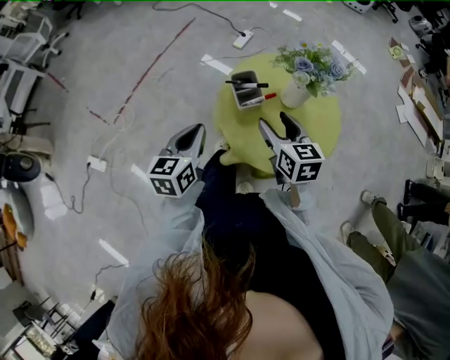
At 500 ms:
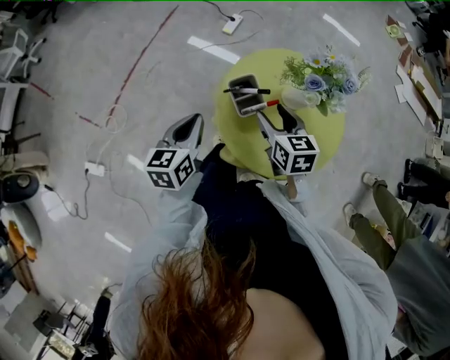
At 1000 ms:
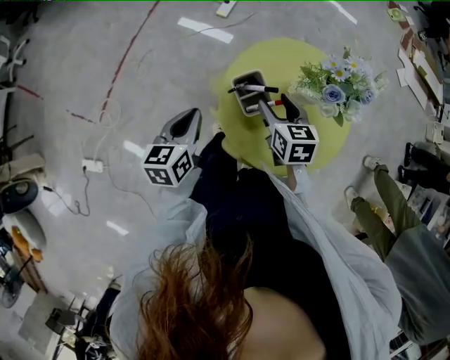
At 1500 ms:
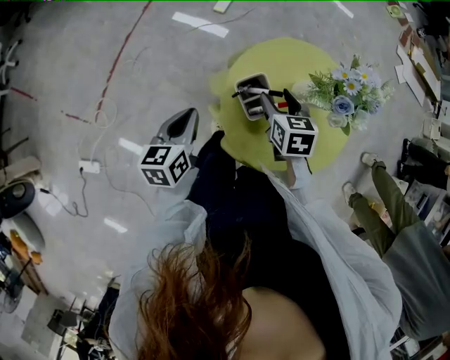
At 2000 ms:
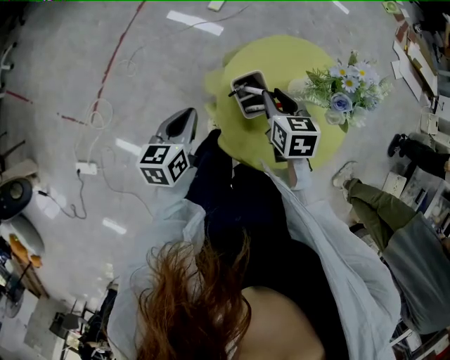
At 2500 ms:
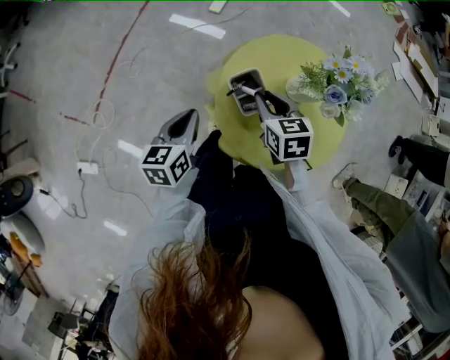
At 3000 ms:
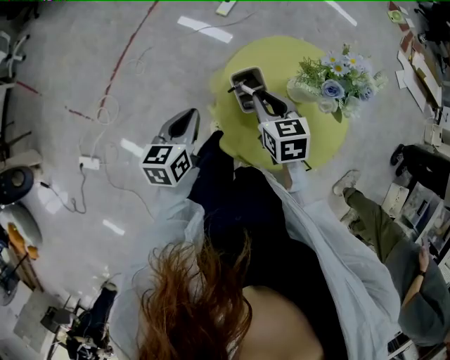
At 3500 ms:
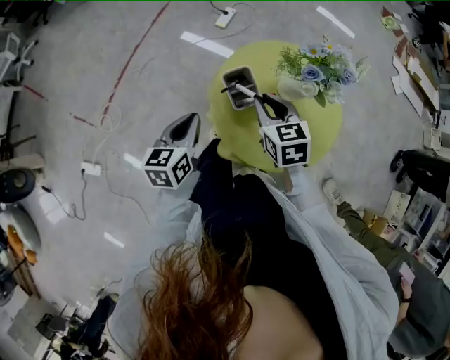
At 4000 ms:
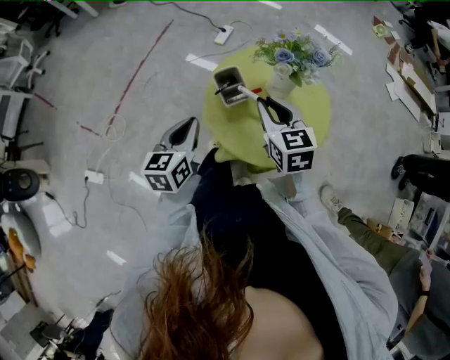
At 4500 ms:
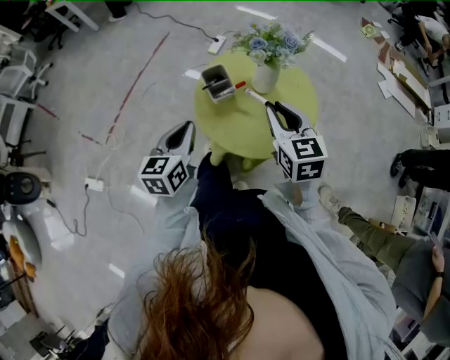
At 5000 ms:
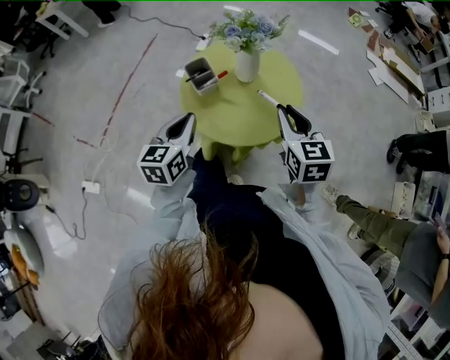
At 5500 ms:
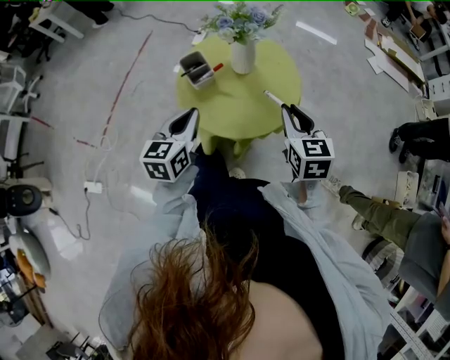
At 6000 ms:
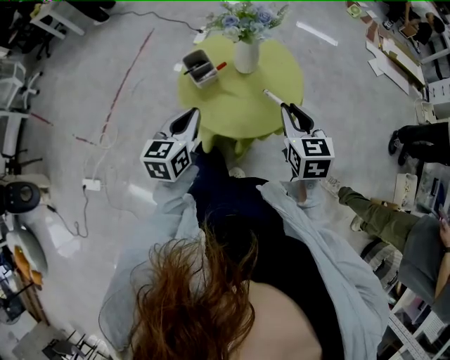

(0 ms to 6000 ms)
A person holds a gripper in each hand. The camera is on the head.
0 ms - 2000 ms: Both grippers travel together forward and downward, some 15 cm. The right gripper changes its angle by some 20 degrees, and closes up.
2000 ms - 4000 ms: The left gripper heads backward, upward and to the right, covering about 15 cm, while the right gripper travels upward and backward by some 15 cm, and rotates about 20 degrees.
4000 ms - 6000 ms: The right gripper goes about 20 cm to the right and backward. The left gripper travels to the right and backward by roughly 10 cm.

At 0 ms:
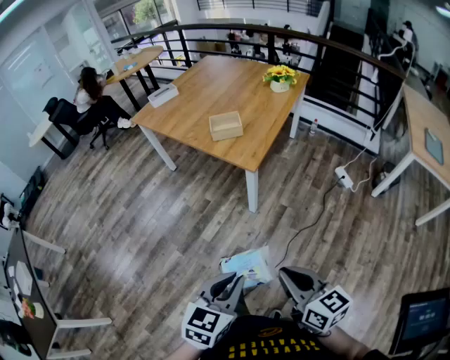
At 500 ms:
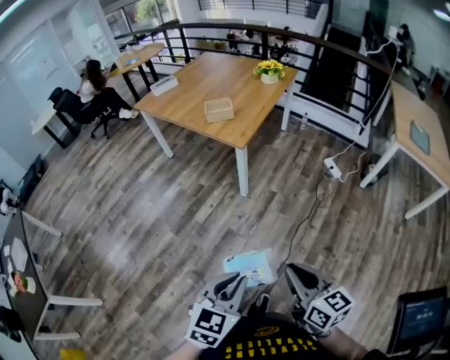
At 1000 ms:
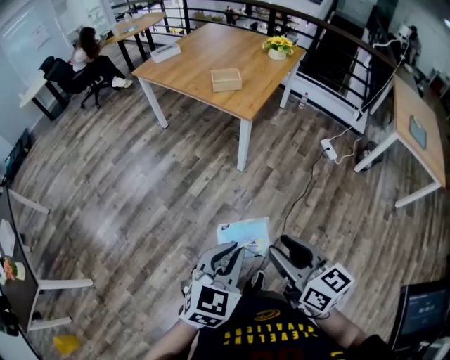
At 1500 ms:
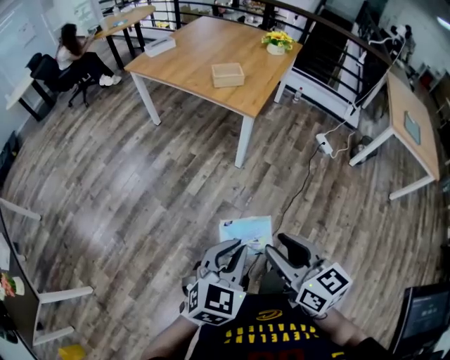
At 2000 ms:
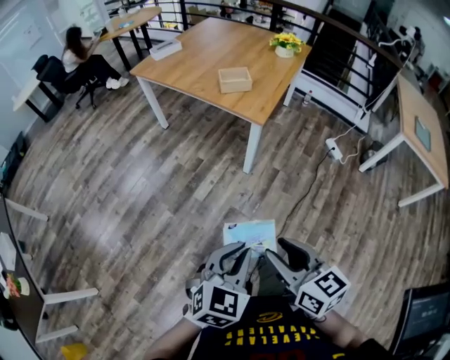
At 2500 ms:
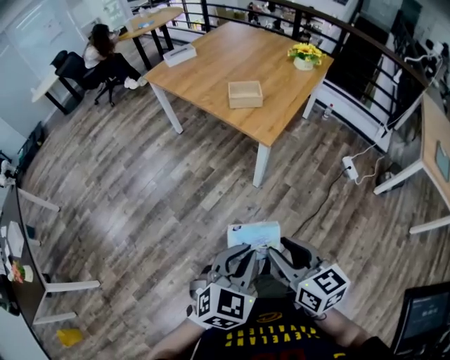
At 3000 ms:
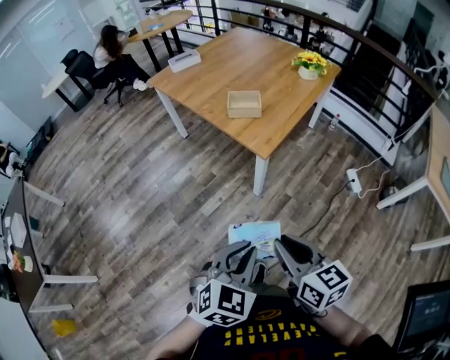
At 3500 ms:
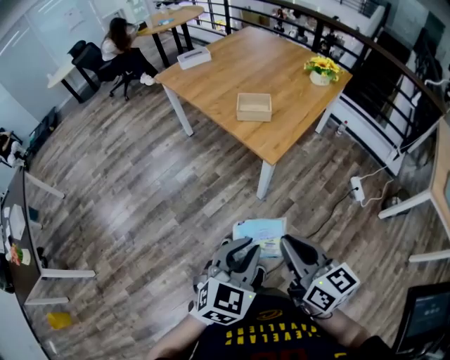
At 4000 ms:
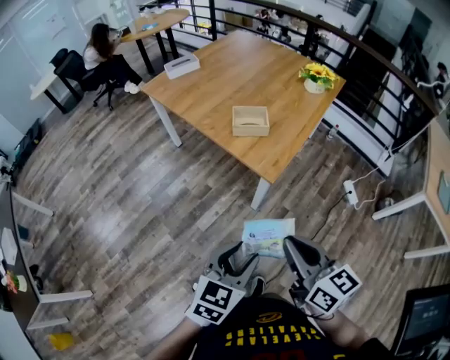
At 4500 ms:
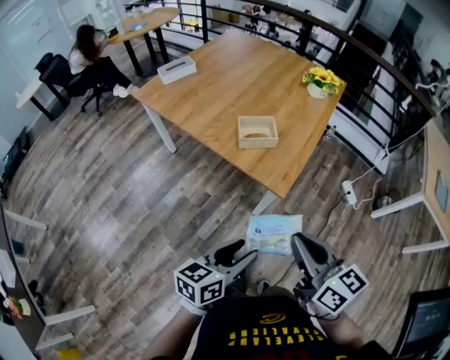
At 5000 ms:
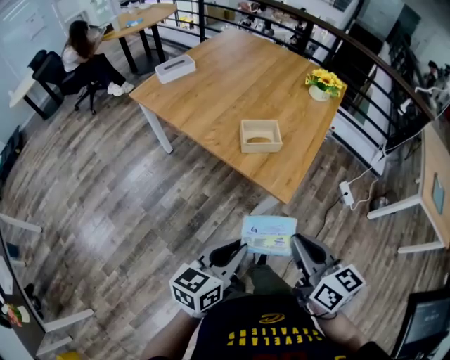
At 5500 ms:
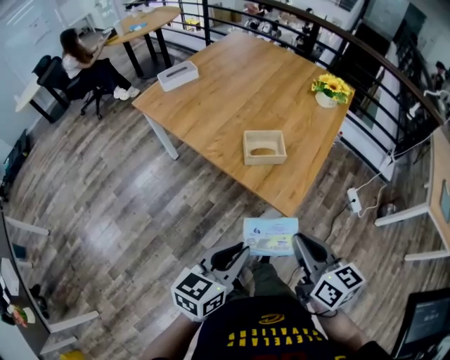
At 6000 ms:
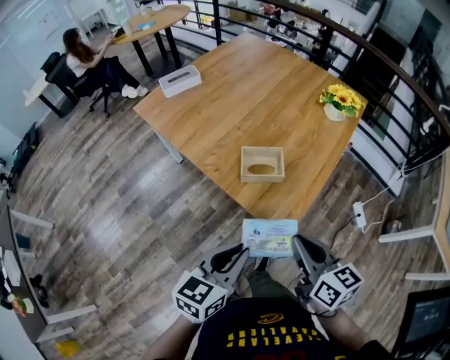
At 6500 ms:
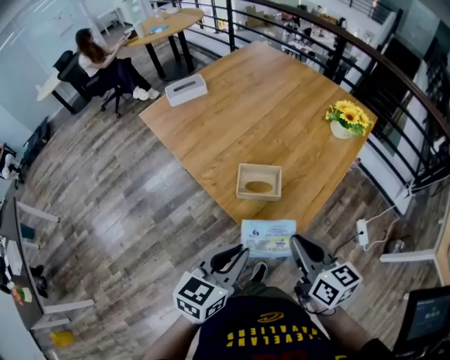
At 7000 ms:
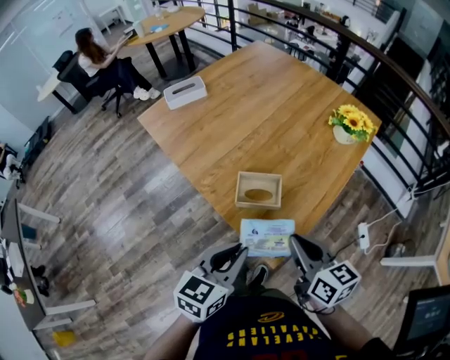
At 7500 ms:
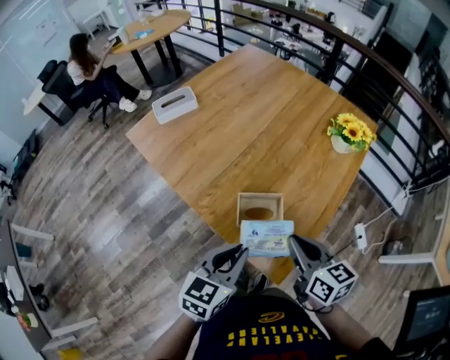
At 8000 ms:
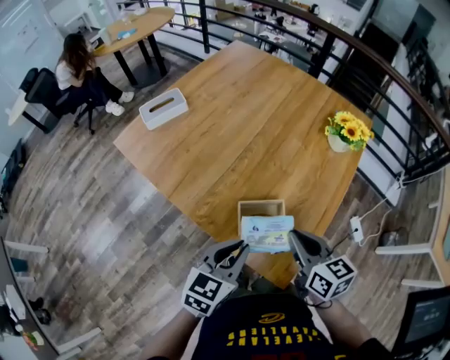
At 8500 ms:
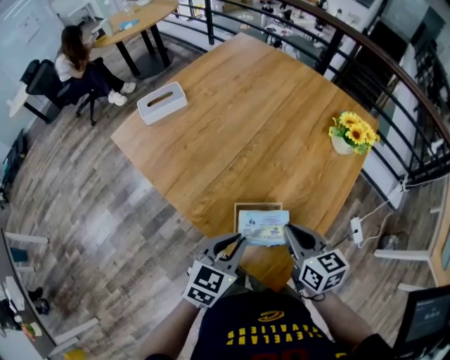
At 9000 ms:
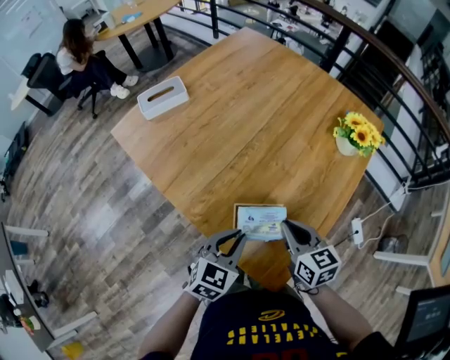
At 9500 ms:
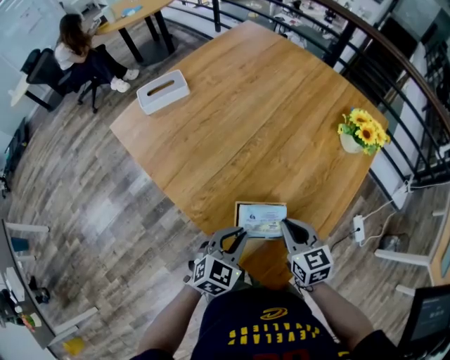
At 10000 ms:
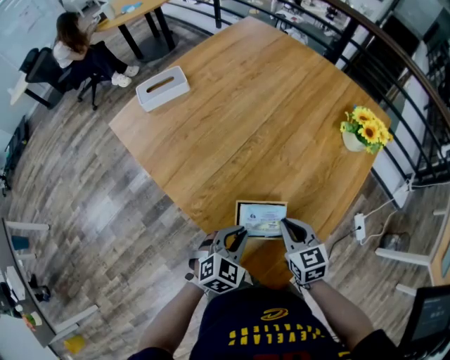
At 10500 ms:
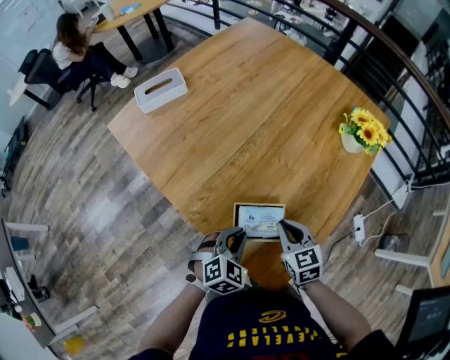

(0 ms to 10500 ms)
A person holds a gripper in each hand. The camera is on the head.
0 ms - 2000 ms: The left gripper shifts some 5 cm backward; the right gripper goes roughly 10 cm to the left and backward, and opens its fingers.
2000 ms - 4000 ms: Both grippers travel together forward, some 25 cm. The right gripper closes its fingers. The left gripper opens.
4000 ms - 6500 ms: Both grippers travel together forward, about 30 cm. The left gripper closes its fingers.
6500 ms - 8500 ms: The grippers both shift forward by some 20 cm.
8500 ms - 10500 ms: The two grippers go about 10 cm downward. The left gripper swivels approximately 30 degrees. Meanwhile the right gripper swivels roughly 20 degrees.

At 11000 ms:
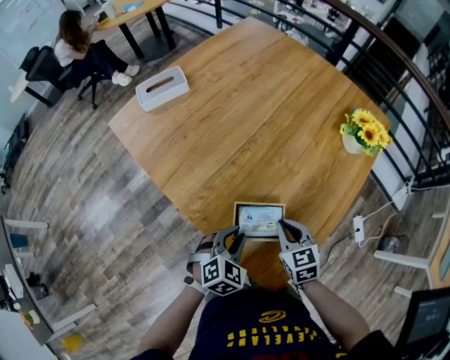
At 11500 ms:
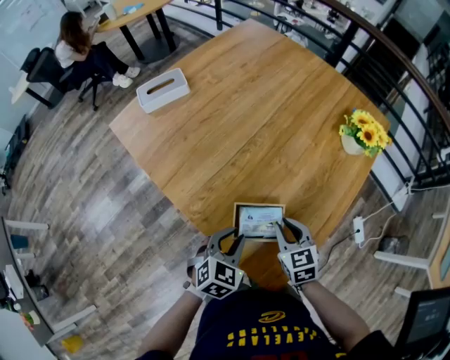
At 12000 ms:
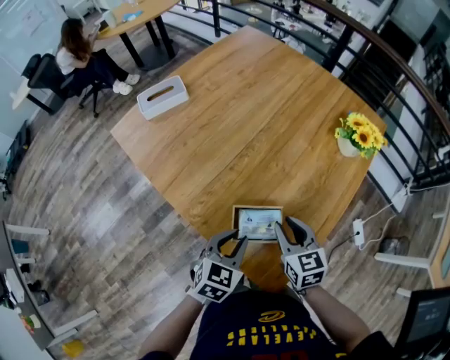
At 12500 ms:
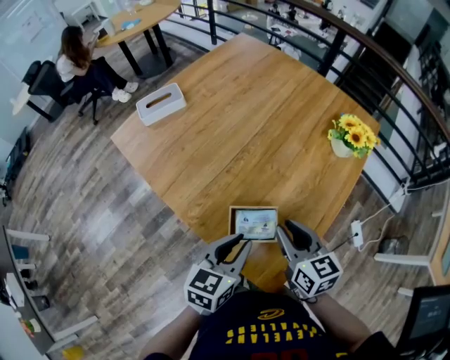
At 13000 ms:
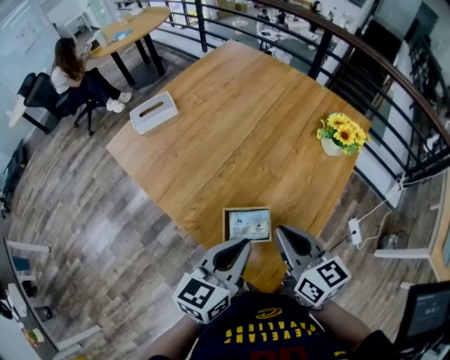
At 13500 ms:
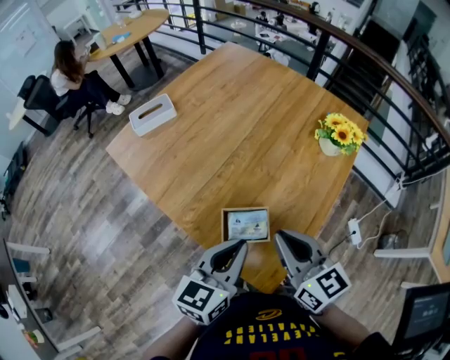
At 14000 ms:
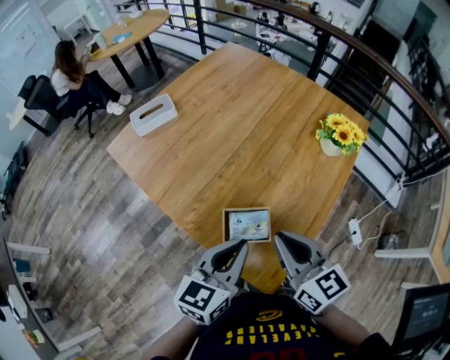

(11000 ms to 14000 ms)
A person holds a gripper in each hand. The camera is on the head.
11000 ms - 12500 ms: The two grippers go some 15 cm upward. The right gripper rotates about 20 degrees, and opens, while the left gripper changes its angle by approximately 40 degrees.
12500 ms - 14000 ms: Both grippers move upward, some 10 cm. The right gripper closes up.

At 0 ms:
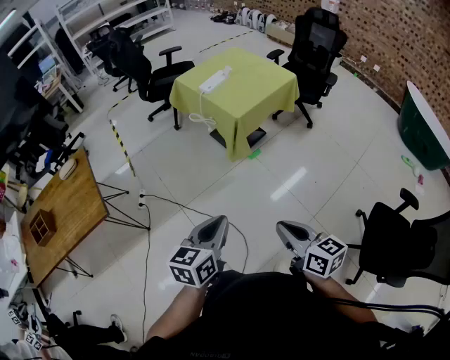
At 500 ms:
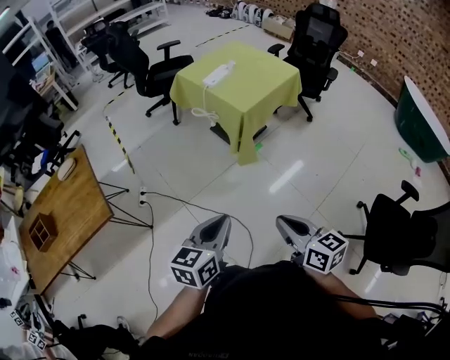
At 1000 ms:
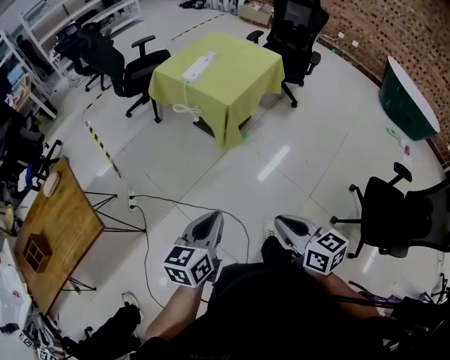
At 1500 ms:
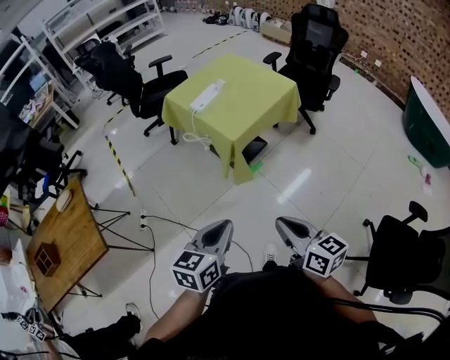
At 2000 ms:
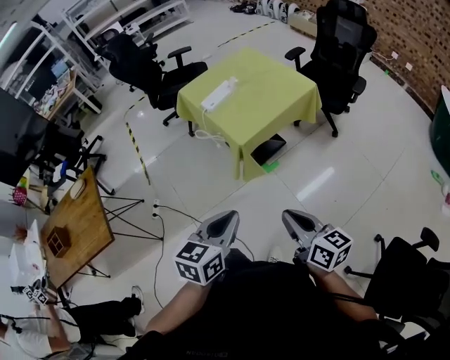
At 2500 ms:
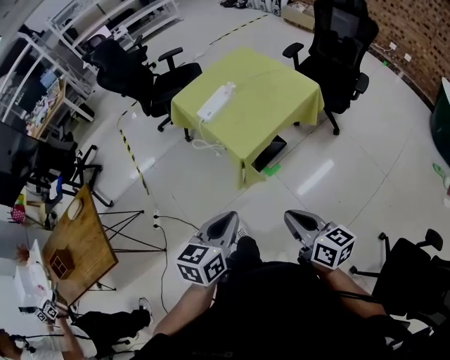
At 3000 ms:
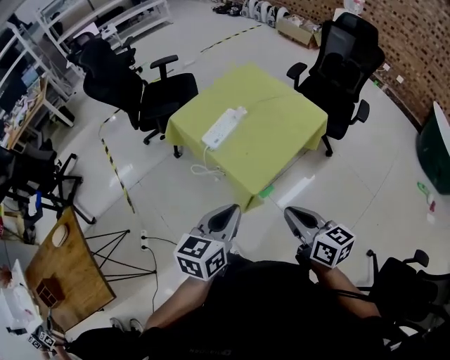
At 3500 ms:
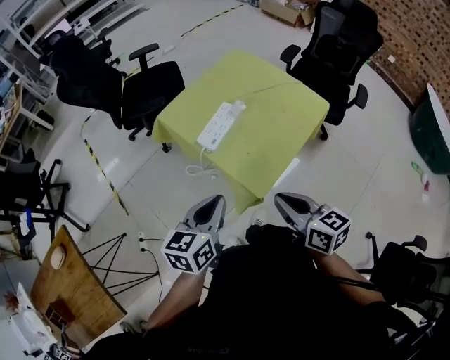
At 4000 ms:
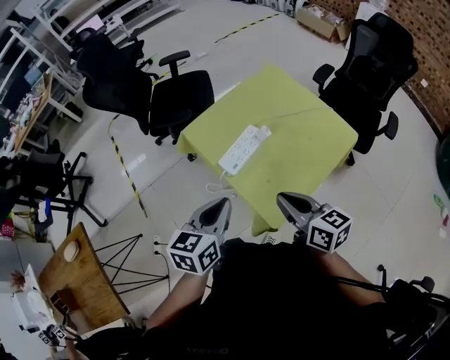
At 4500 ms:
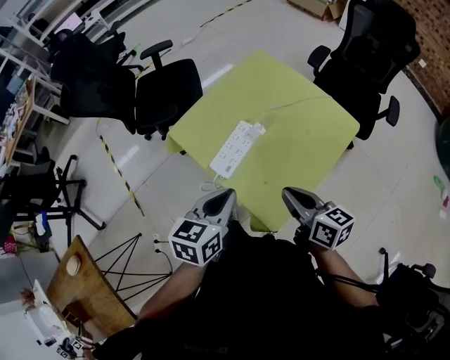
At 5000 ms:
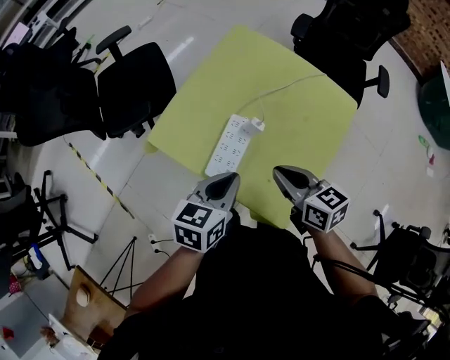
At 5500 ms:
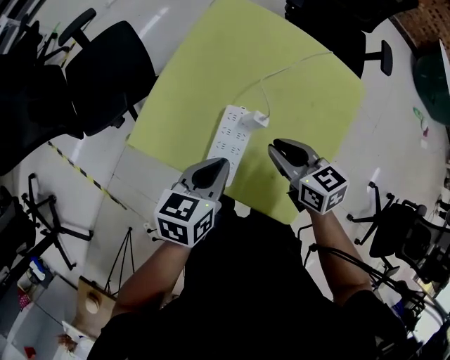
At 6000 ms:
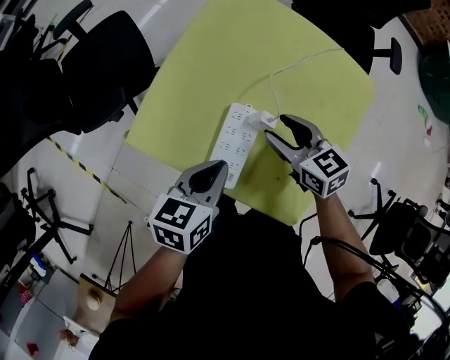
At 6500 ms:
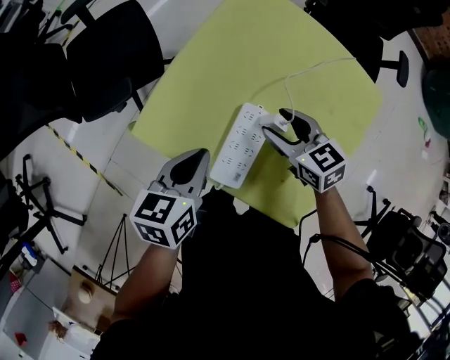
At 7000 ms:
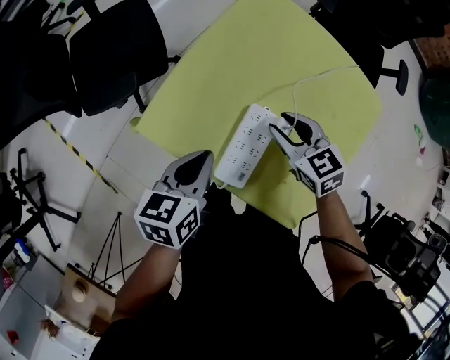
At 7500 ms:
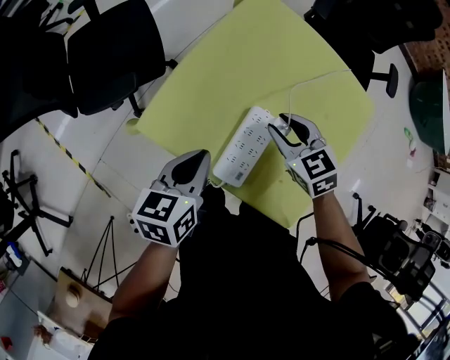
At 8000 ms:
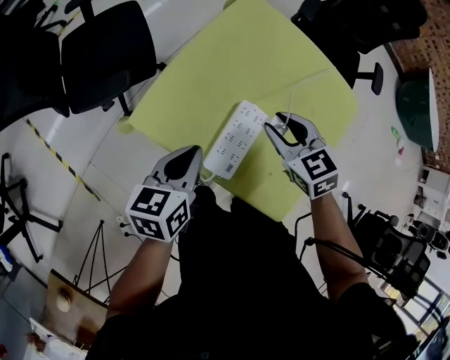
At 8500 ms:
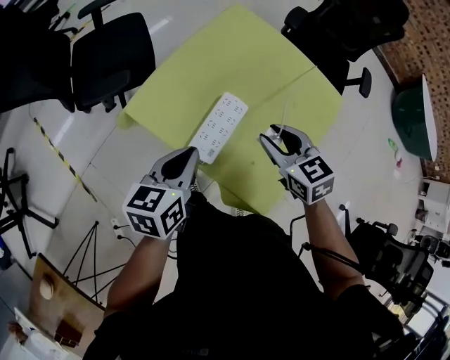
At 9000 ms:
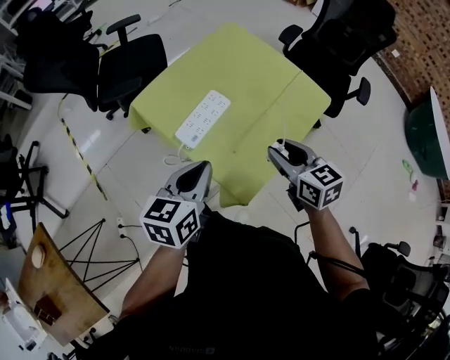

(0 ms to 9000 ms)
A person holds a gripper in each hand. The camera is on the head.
0 ms - 2000 ms: The left gripper is displaced forward and to the right by approximately 25 cm; the right gripper heads forward, covering roughly 25 cm.
2000 ms - 4500 ms: The two grippers travel together, forward, roughly 50 cm.
4500 ms - 7000 ms: The grippers both shift forward, downward and to the left by some 25 cm. The right gripper swivels roughly 40 degrees, and opens.
7000 ms - 9000 ms: Both grippers travel together backward, to the right and upward, roughly 25 cm.
